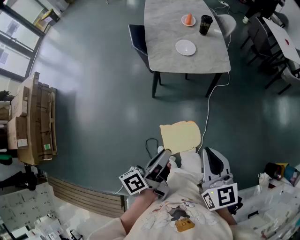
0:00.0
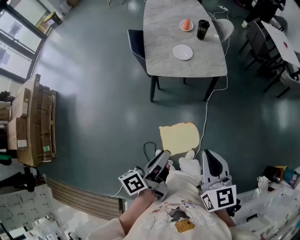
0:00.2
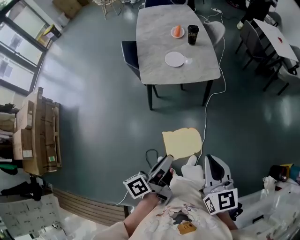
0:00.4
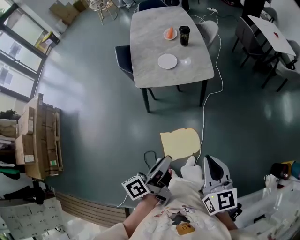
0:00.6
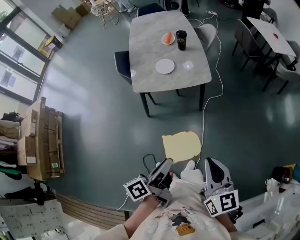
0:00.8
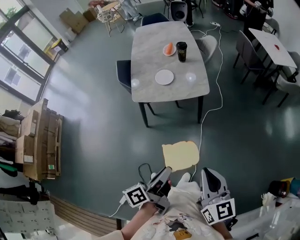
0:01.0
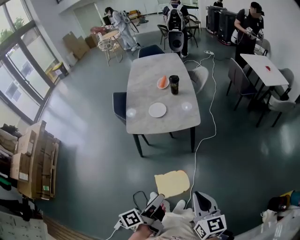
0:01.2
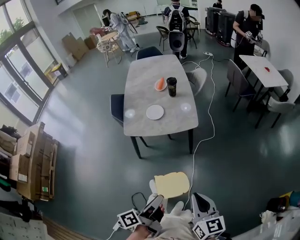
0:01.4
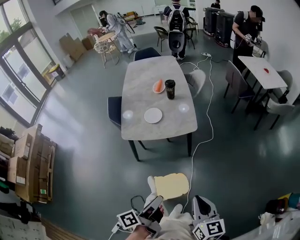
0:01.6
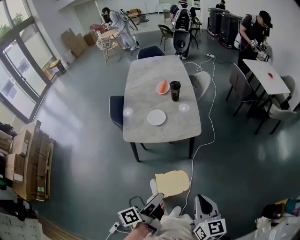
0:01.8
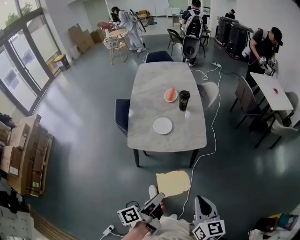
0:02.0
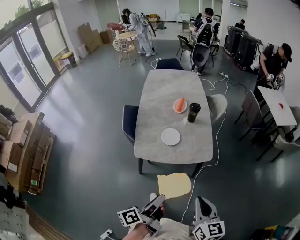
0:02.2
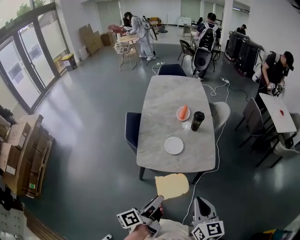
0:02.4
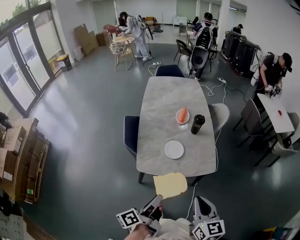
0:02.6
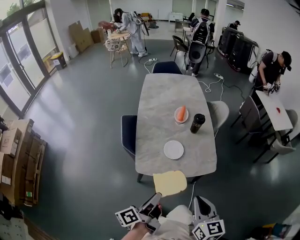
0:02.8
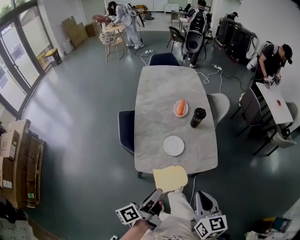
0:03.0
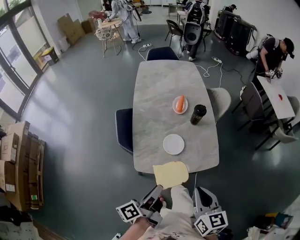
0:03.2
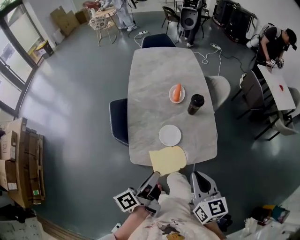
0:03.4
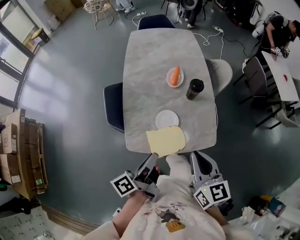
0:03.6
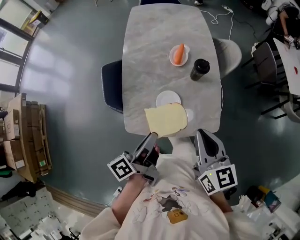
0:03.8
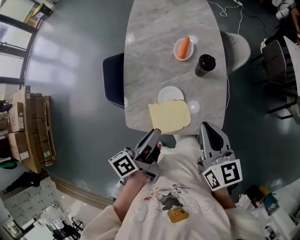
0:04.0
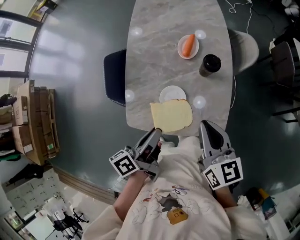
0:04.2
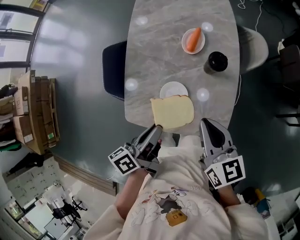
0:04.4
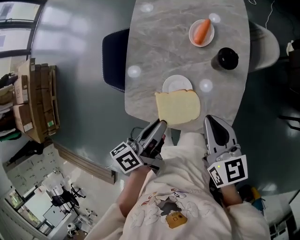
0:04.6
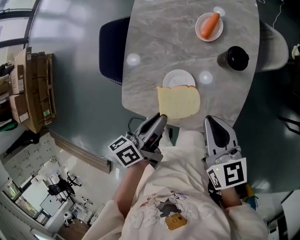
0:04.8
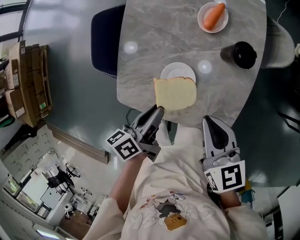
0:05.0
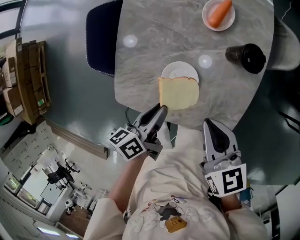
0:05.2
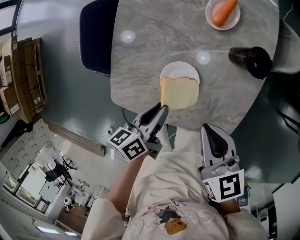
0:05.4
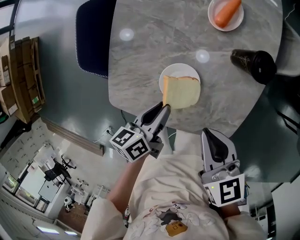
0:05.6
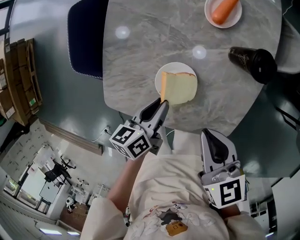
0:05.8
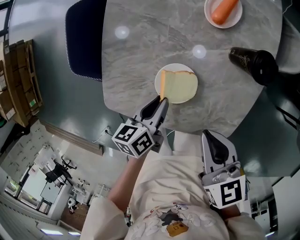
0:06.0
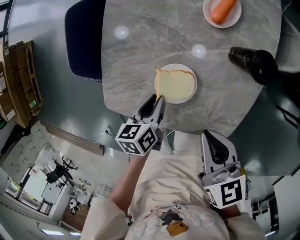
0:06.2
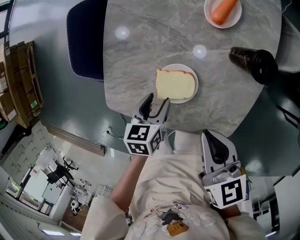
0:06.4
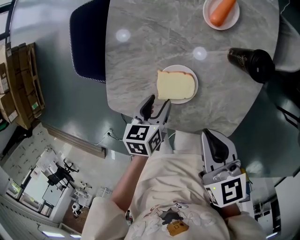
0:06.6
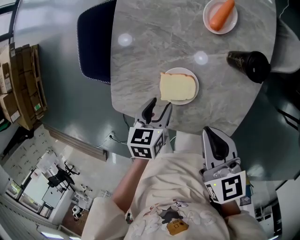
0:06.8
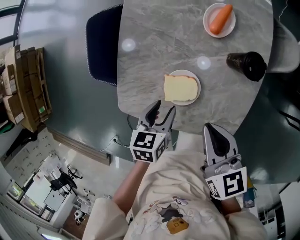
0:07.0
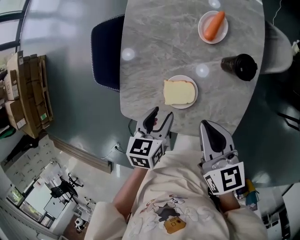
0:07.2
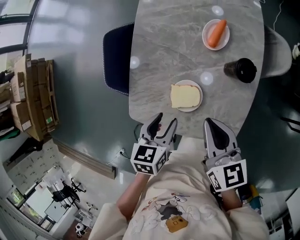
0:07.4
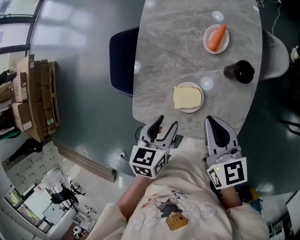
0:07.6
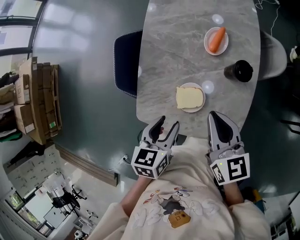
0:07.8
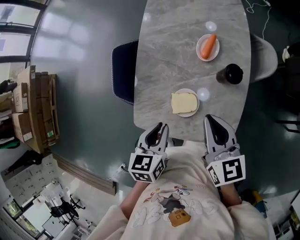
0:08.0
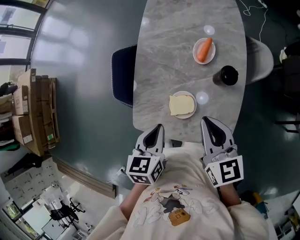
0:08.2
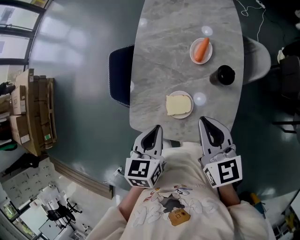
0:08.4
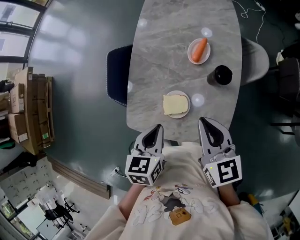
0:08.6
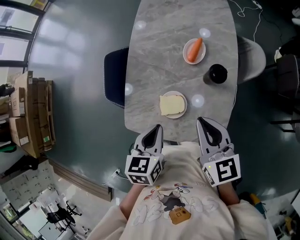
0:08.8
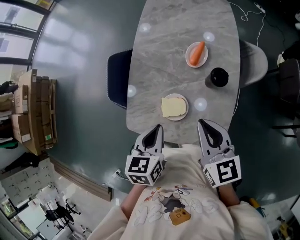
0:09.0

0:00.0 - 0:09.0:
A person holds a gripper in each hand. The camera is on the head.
0:00.0 - 0:01.6: The right gripper ends up approximately 25 cm from where it was.
0:01.6 - 0:03.0: The right gripper ends up roughly 35 cm from where it was.
0:03.0 - 0:04.4: The right gripper shifts by approximately 30 cm, and turns by approximately 20 degrees.
0:04.4 - 0:06.0: The right gripper is displaced downward by approximately 15 cm, and changes its angle by roughly 20 degrees.
0:06.0 - 0:07.6: The right gripper moves upward, about 10 cm.
0:07.6 - 0:09.0: The right gripper goes about 5 cm upward.

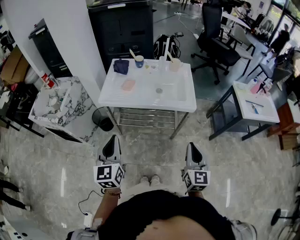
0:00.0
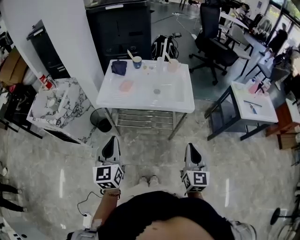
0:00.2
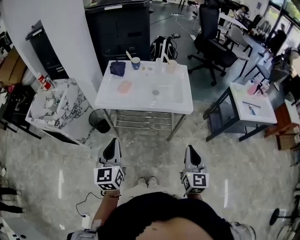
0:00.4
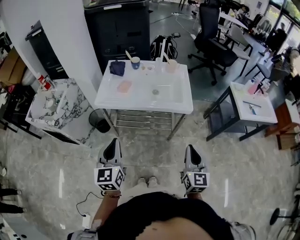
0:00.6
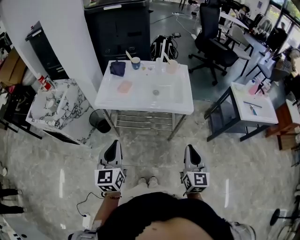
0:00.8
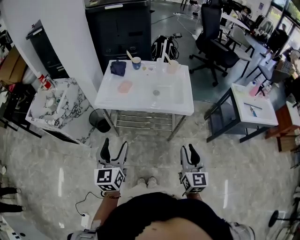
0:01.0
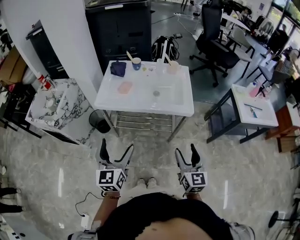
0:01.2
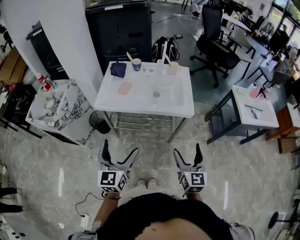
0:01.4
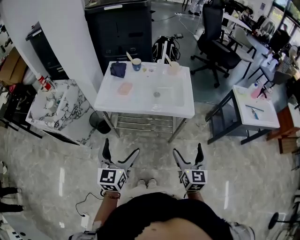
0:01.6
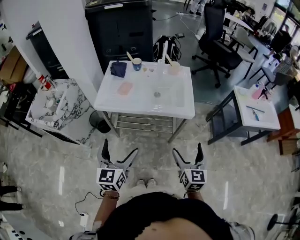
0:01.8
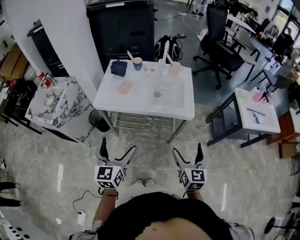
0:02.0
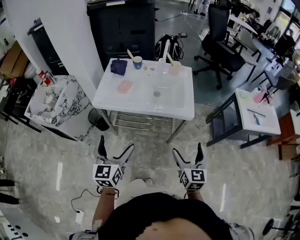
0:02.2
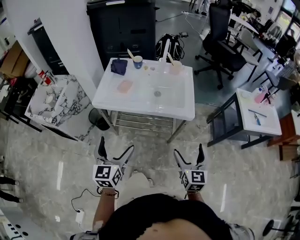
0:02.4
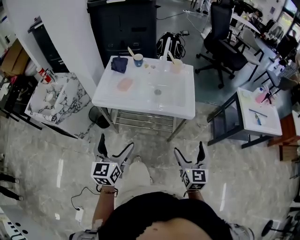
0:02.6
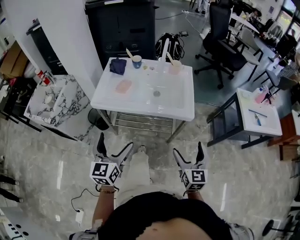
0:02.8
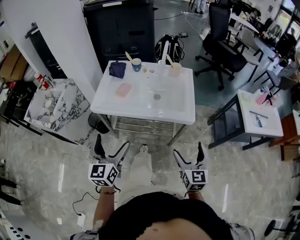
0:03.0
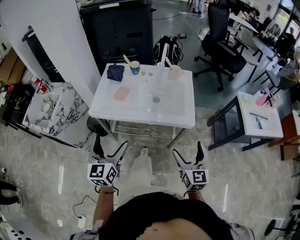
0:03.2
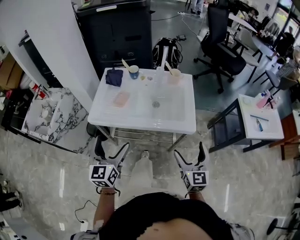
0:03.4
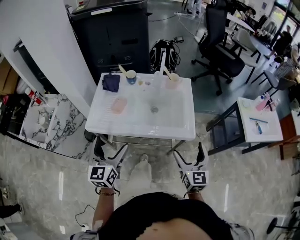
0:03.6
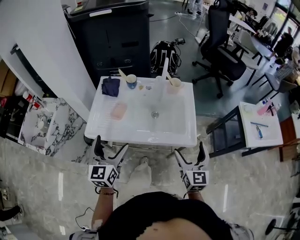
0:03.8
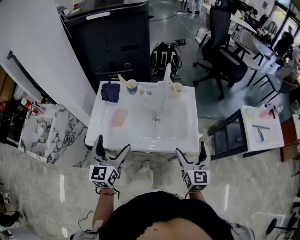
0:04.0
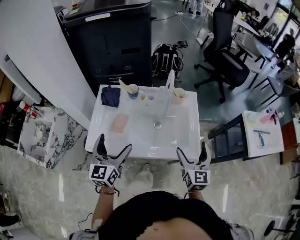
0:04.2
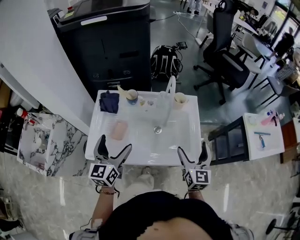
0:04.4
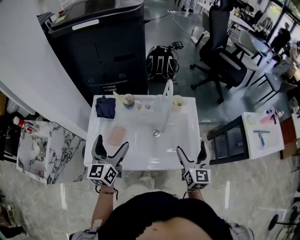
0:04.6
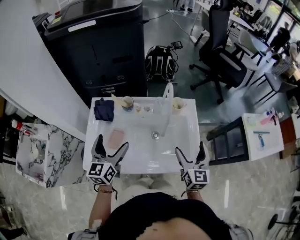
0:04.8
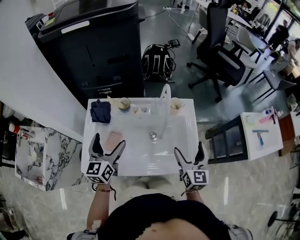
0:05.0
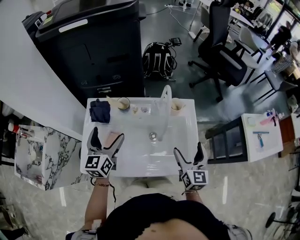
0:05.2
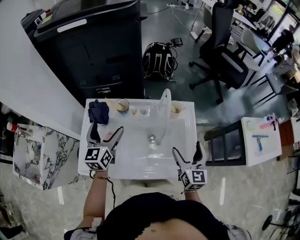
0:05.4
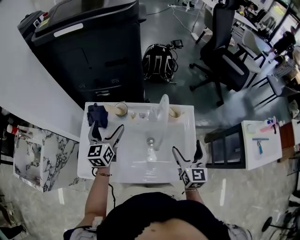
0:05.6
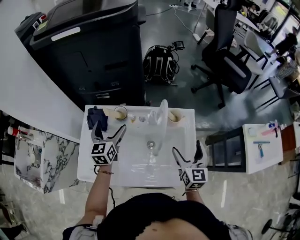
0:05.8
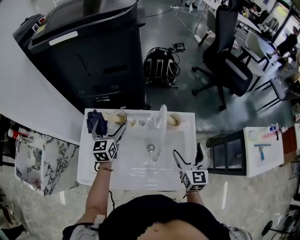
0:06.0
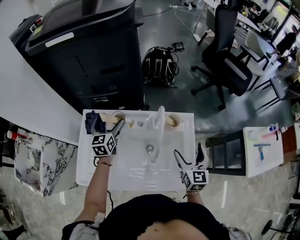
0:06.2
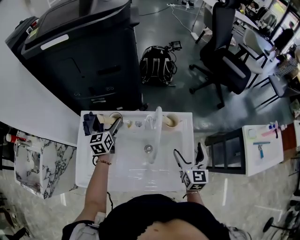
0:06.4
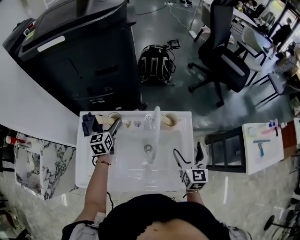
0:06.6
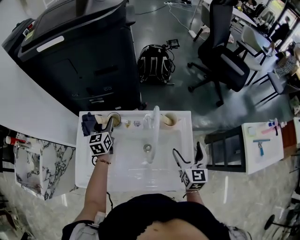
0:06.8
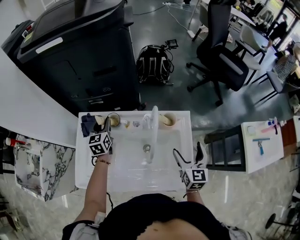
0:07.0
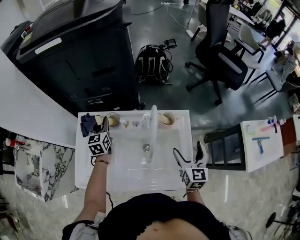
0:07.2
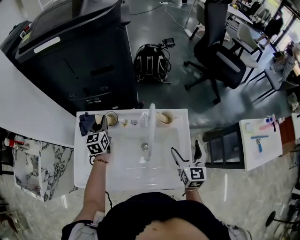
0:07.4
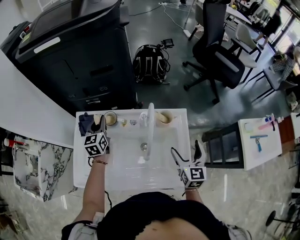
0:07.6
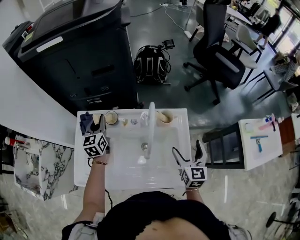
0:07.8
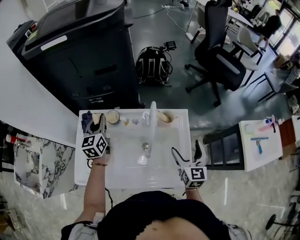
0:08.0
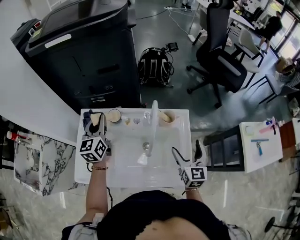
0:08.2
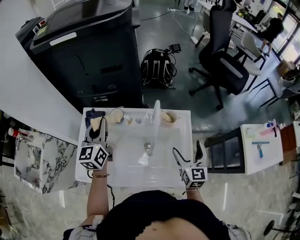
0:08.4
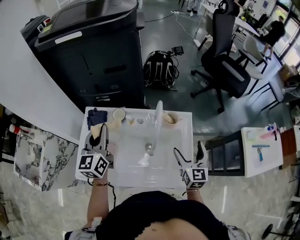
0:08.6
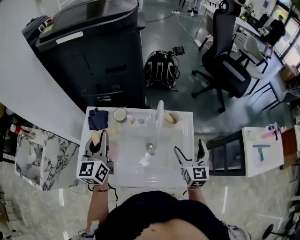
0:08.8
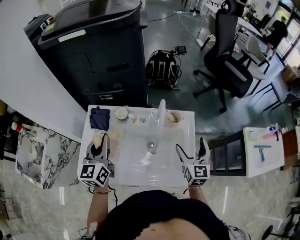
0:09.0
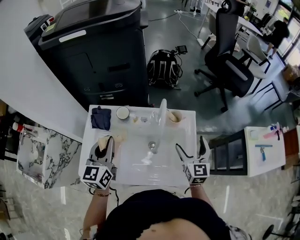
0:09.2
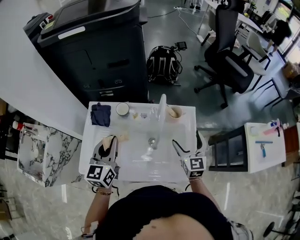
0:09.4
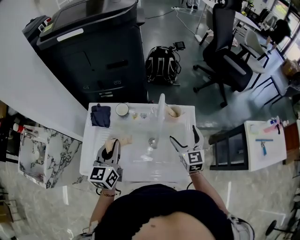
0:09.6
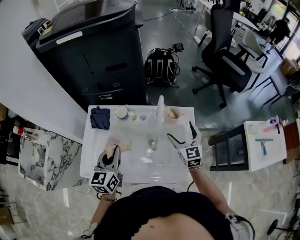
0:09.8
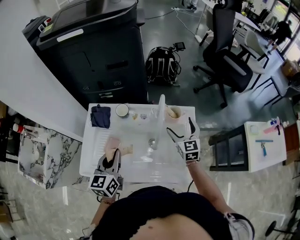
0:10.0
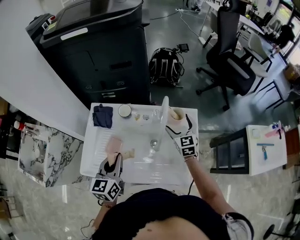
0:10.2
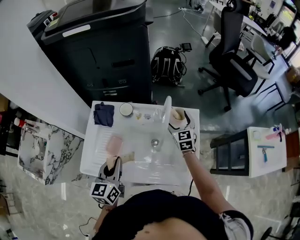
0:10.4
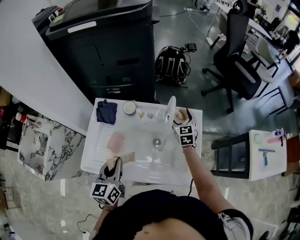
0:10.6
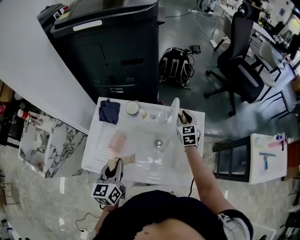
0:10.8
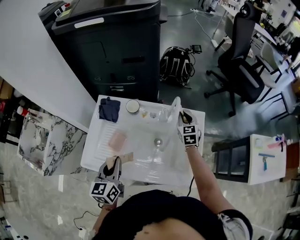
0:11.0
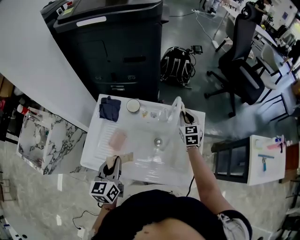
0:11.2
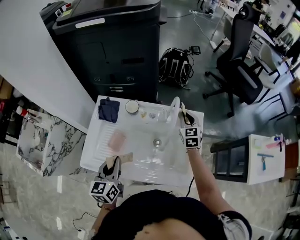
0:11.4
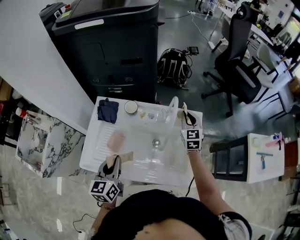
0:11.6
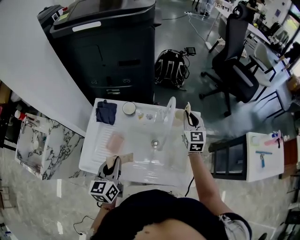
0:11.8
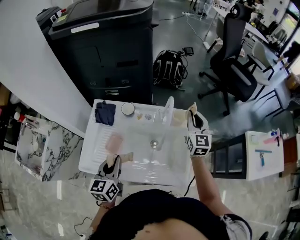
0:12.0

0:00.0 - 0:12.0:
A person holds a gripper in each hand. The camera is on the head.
0:00.0 - 0:01.6: The left gripper shifts about 5 cm to the right, and opens its fingers. The right gripper moves approximately 5 cm, and opens up.
0:01.6 - 0:03.0: Both grippers move forward, approximately 5 cm.
0:03.0 - 0:04.4: The grippers both shift forward by roughly 30 cm.
0:04.4 - 0:06.0: The left gripper shifts roughly 25 cm forward, while the right gripper travels forward by roughly 15 cm.
0:06.0 - 0:07.6: The left gripper closes up.
0:07.6 - 0:09.0: The left gripper goes about 20 cm backward and upward.
0:09.0 - 0:10.4: The left gripper shifts approximately 10 cm backward and downward; the right gripper shifts some 15 cm forward, to the left and downward.
0:10.4 - 0:12.0: The right gripper shifts some 10 cm upward and to the right, and closes up.

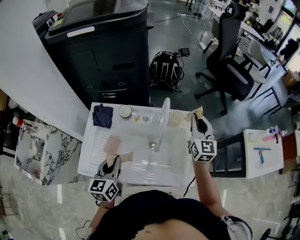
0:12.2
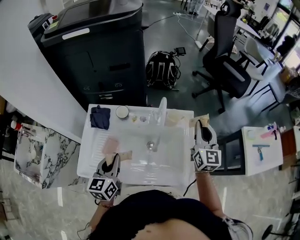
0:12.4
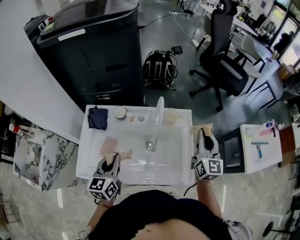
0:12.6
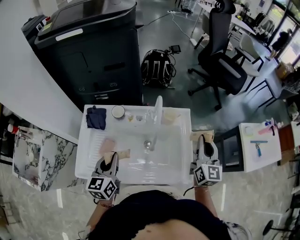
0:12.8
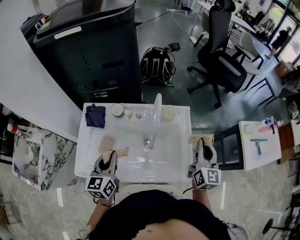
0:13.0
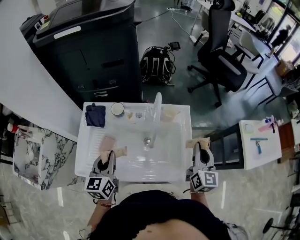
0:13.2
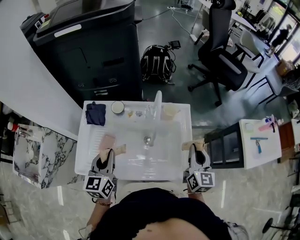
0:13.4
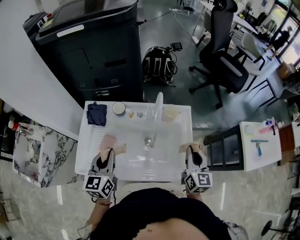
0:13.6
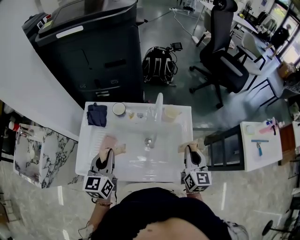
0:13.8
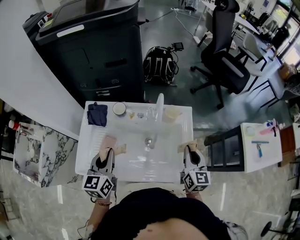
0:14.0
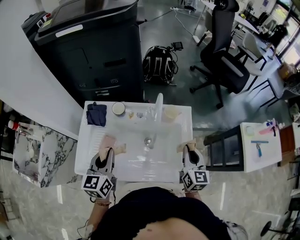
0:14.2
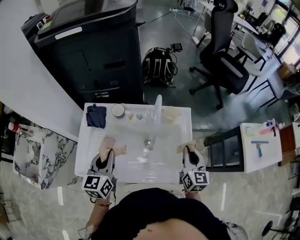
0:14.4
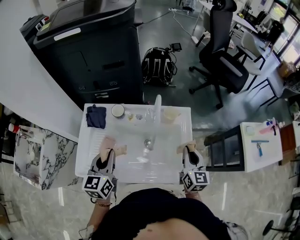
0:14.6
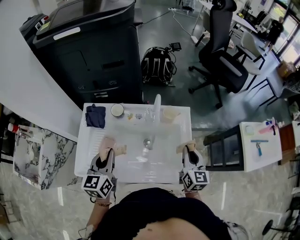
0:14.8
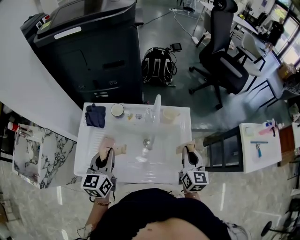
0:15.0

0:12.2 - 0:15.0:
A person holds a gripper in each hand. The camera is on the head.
0:12.2 - 0:13.6: The right gripper travels backward by about 15 cm.
0:13.6 - 0:15.0: The grippers stay close to where they were, moving slightly.
